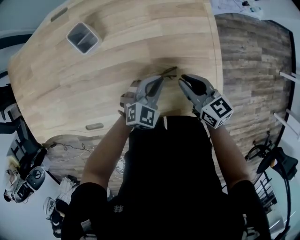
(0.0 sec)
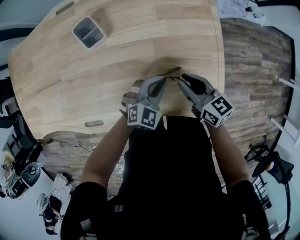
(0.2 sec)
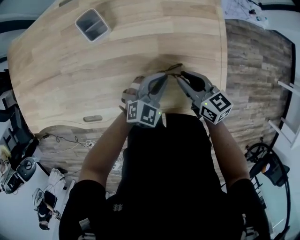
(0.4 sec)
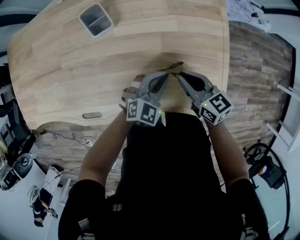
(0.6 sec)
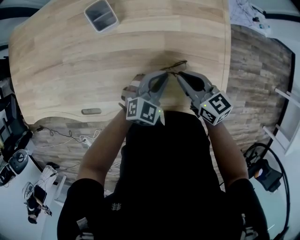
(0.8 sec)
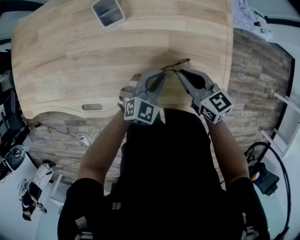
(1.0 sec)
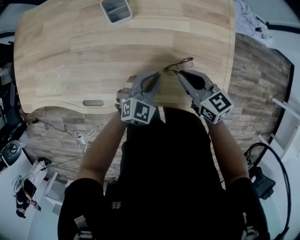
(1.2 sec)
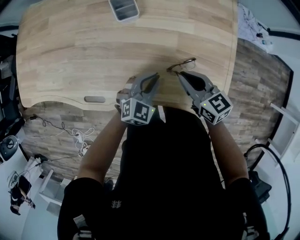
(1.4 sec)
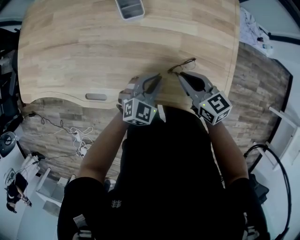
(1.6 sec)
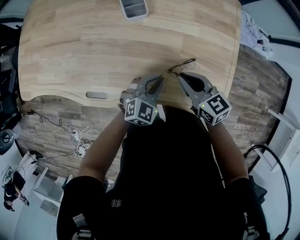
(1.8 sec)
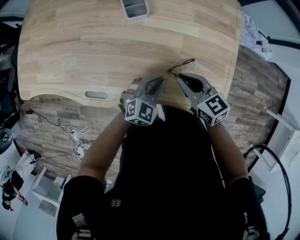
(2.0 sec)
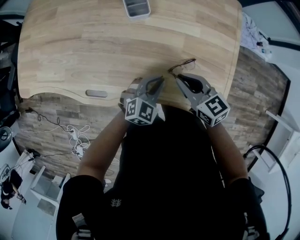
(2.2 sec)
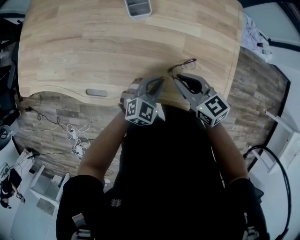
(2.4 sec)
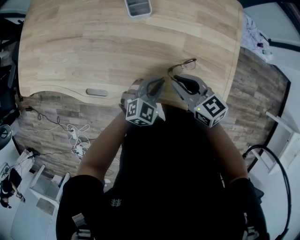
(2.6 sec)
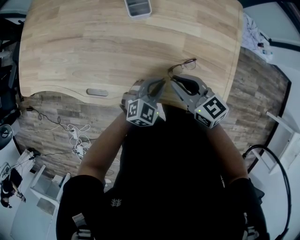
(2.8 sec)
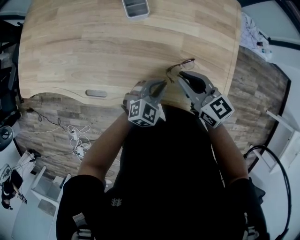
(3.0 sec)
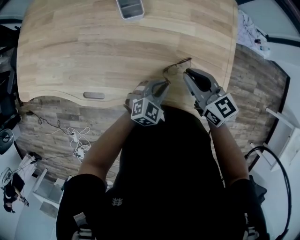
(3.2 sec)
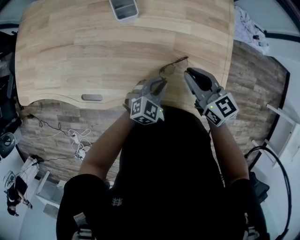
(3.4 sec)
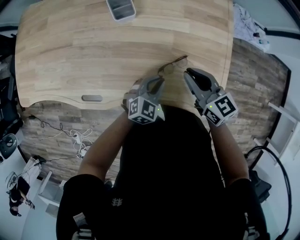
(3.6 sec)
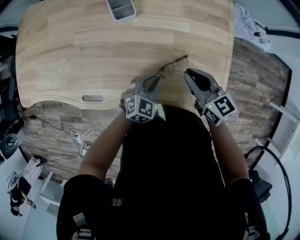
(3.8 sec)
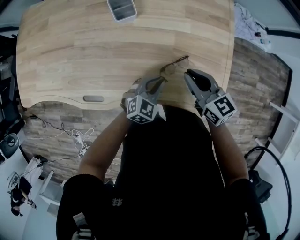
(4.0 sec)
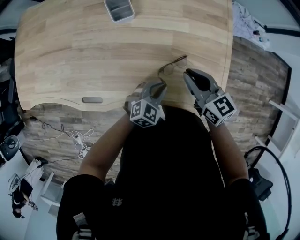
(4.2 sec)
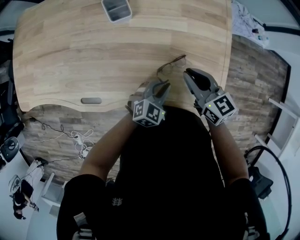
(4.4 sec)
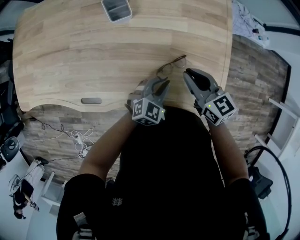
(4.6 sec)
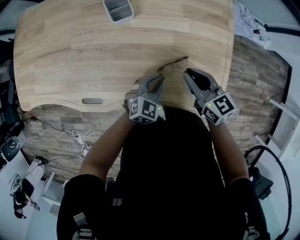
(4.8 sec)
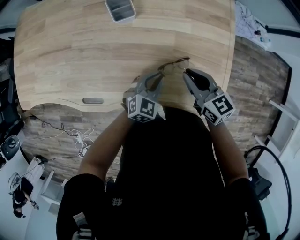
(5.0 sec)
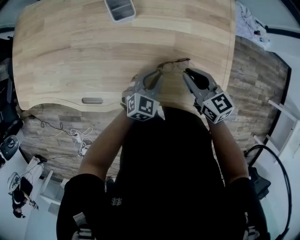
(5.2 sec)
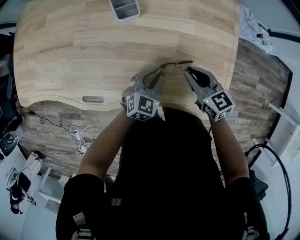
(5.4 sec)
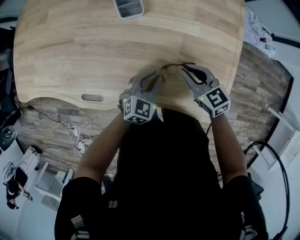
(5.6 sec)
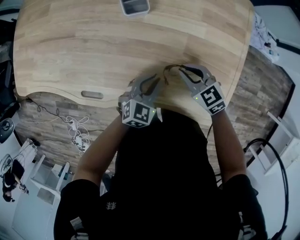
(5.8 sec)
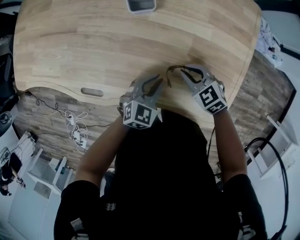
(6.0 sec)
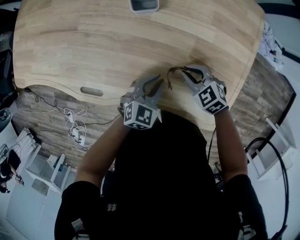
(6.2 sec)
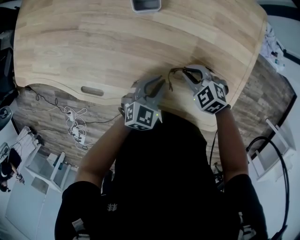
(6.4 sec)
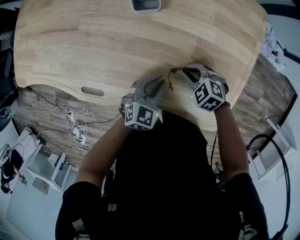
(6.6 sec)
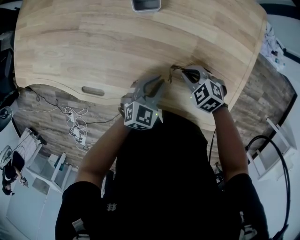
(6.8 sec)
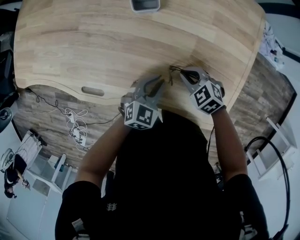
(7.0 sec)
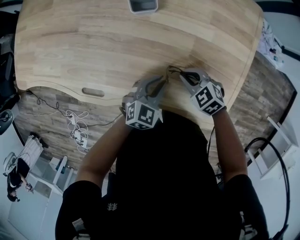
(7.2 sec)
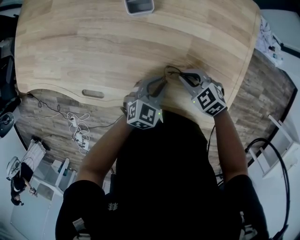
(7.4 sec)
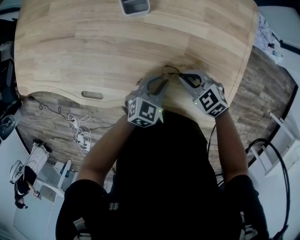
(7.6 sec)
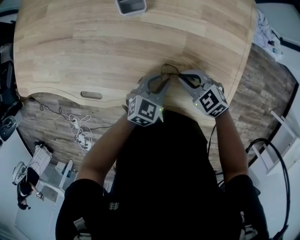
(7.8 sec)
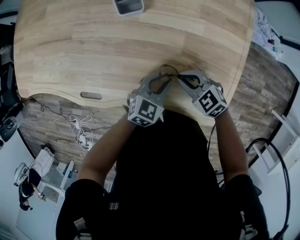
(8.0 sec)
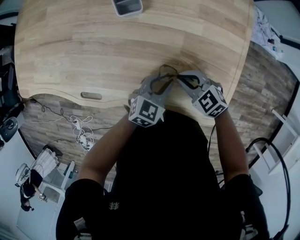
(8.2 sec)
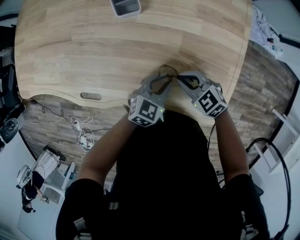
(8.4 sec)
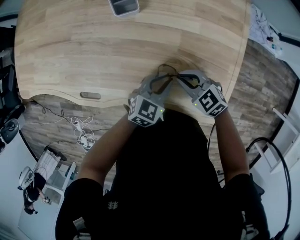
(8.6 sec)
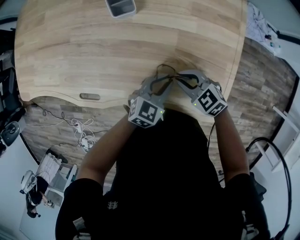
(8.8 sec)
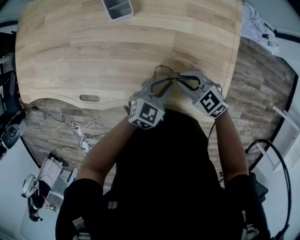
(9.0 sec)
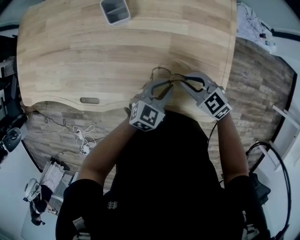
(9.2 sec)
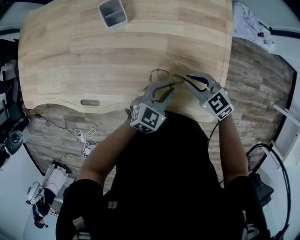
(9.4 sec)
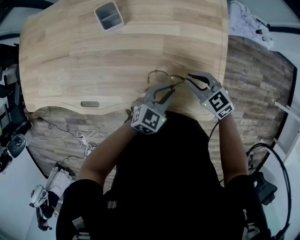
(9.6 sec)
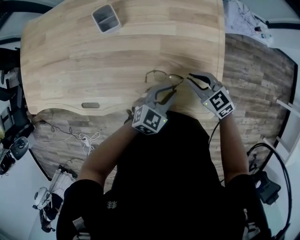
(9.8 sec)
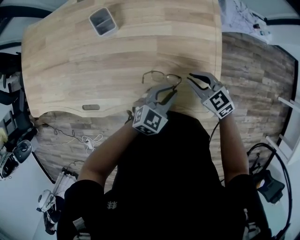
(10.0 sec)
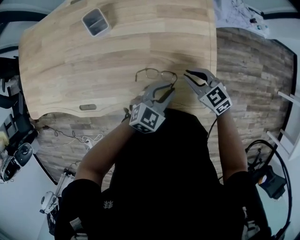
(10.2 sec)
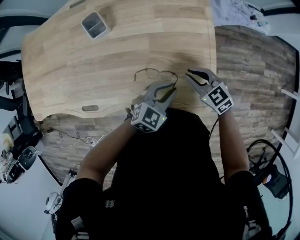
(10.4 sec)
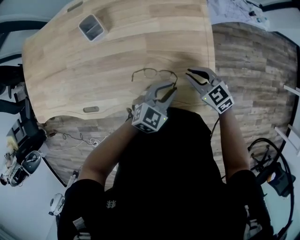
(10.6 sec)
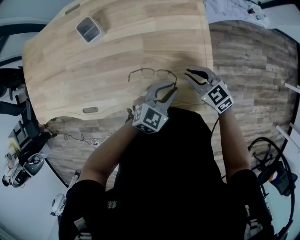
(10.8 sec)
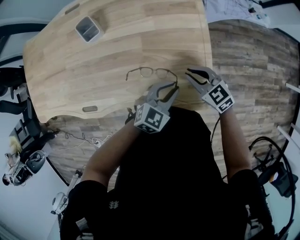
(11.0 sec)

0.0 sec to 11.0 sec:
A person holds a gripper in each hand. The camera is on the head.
0.0 sec to 1.6 sec: Both grippers move to the left, approximately 10 cm.
1.6 sec to 3.2 sec: The left gripper shifts by about 5 cm.
3.2 sec to 4.8 sec: The grippers move only a little.
4.8 sec to 6.2 sec: The left gripper ends up roughly 5 cm from where it was. Meanwhile the right gripper goes approximately 15 cm downward, and turns by some 50 degrees.
6.2 sec to 7.8 sec: There are only small adjustments of the grippers.
7.8 sec to 9.4 sec: The left gripper moves to the right, backward and upward, approximately 10 cm, while the right gripper is displaced to the right and upward by some 10 cm.
9.4 sec to 11.0 sec: Both grippers travel together to the right, about 10 cm.

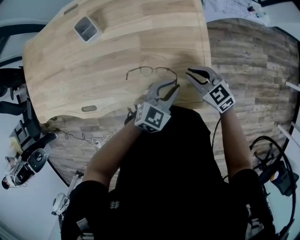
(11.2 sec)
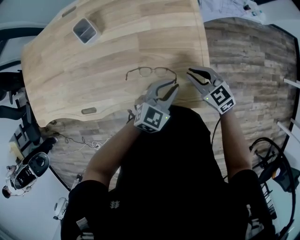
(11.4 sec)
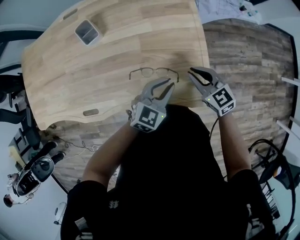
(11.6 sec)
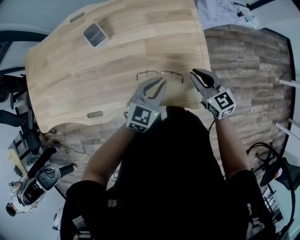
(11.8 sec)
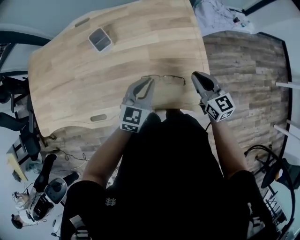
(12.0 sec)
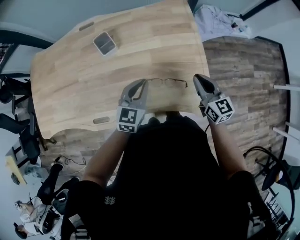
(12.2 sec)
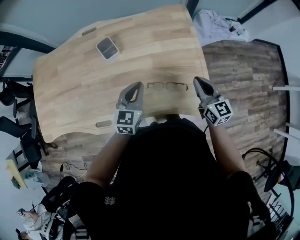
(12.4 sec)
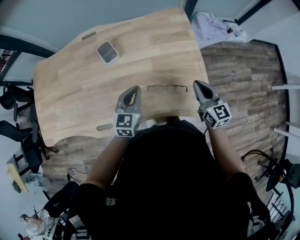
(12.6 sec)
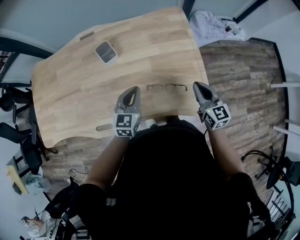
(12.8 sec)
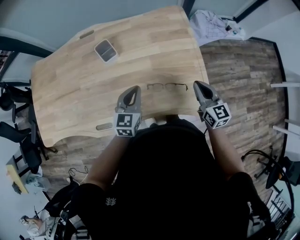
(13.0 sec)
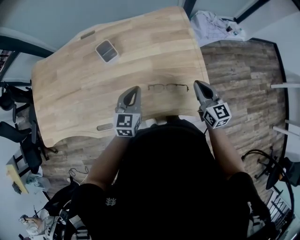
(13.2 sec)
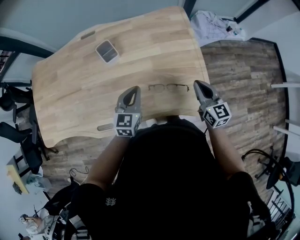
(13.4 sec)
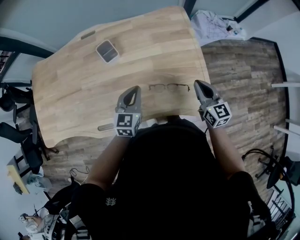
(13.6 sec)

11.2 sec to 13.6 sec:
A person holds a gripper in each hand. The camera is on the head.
11.2 sec to 12.4 sec: The right gripper goes some 15 cm upward, and changes its angle by roughly 40 degrees, while the left gripper travels to the left and upward by some 25 cm, and turns by approximately 30 degrees.
12.4 sec to 13.6 sec: The grippers make only small movements.

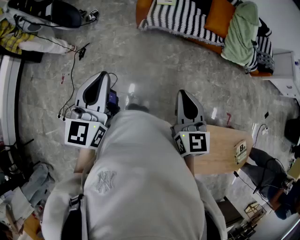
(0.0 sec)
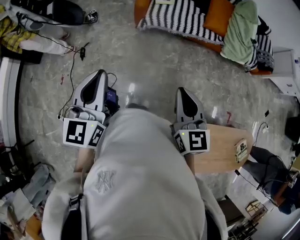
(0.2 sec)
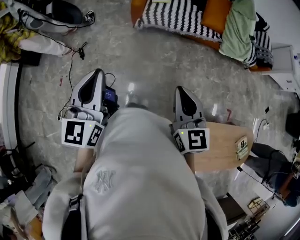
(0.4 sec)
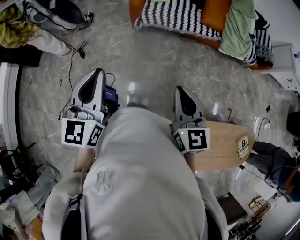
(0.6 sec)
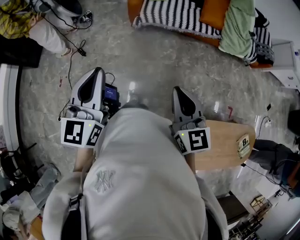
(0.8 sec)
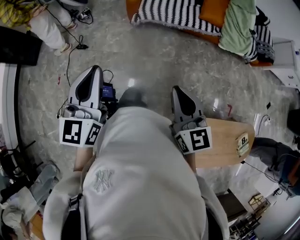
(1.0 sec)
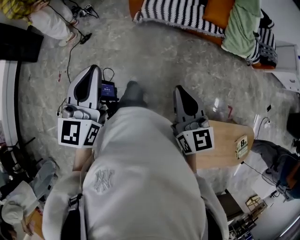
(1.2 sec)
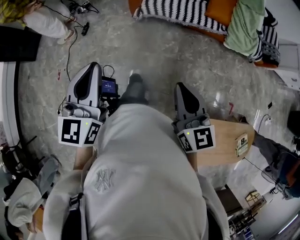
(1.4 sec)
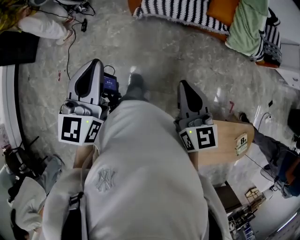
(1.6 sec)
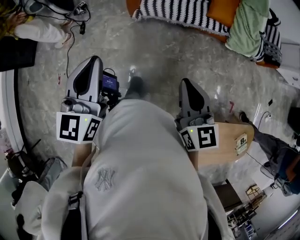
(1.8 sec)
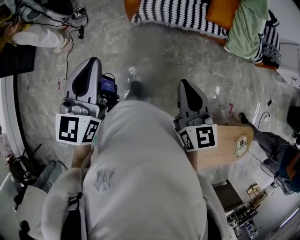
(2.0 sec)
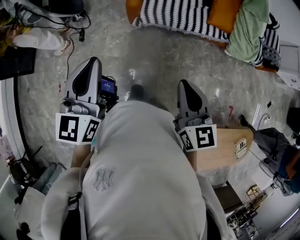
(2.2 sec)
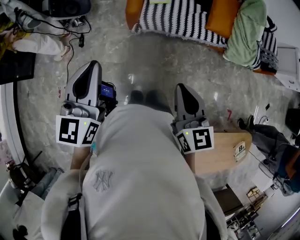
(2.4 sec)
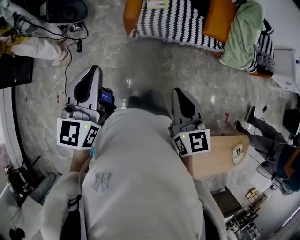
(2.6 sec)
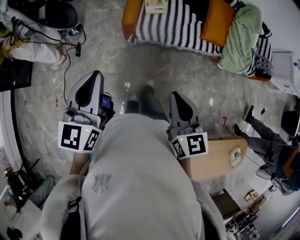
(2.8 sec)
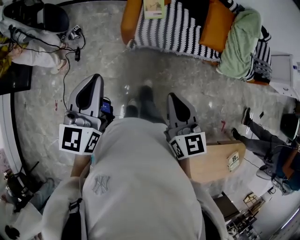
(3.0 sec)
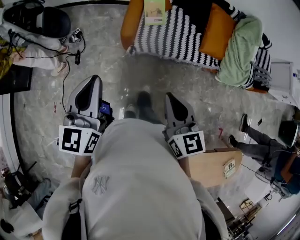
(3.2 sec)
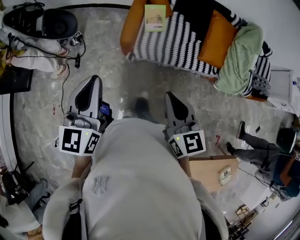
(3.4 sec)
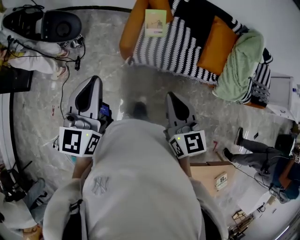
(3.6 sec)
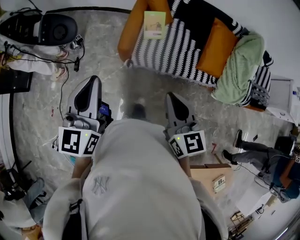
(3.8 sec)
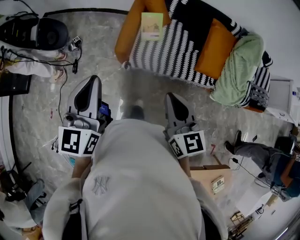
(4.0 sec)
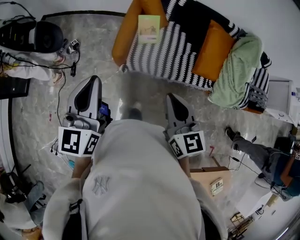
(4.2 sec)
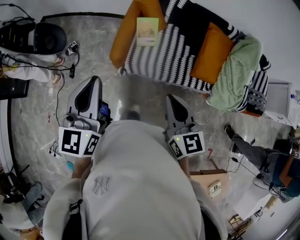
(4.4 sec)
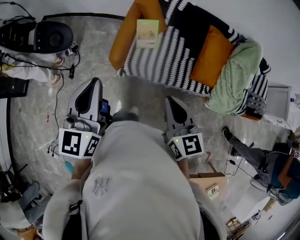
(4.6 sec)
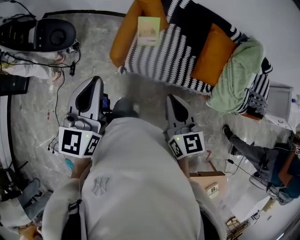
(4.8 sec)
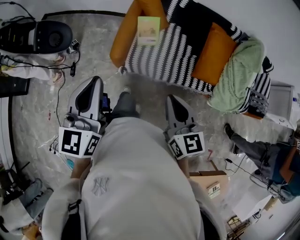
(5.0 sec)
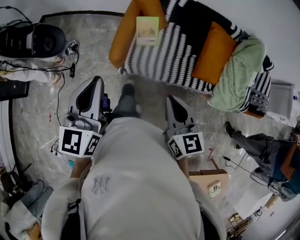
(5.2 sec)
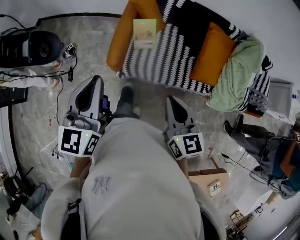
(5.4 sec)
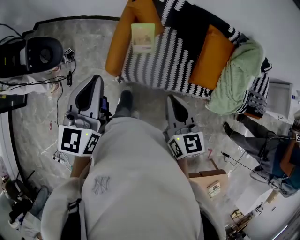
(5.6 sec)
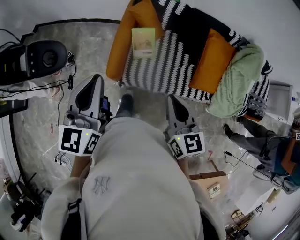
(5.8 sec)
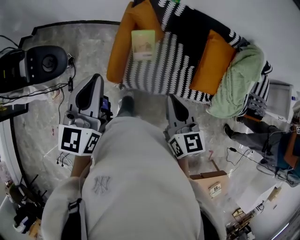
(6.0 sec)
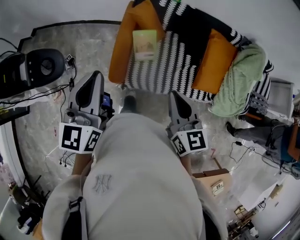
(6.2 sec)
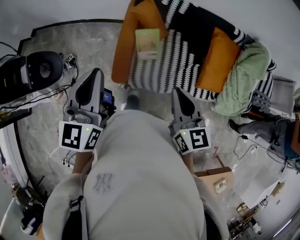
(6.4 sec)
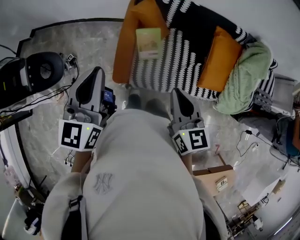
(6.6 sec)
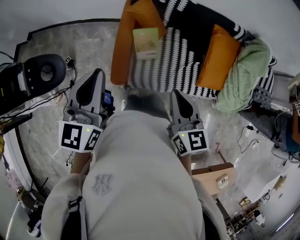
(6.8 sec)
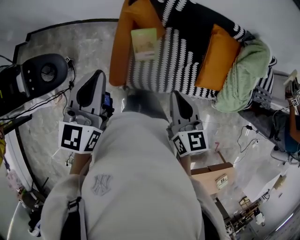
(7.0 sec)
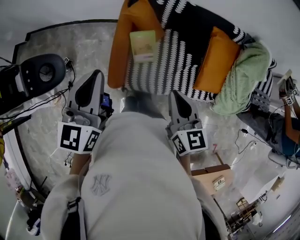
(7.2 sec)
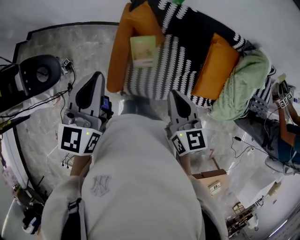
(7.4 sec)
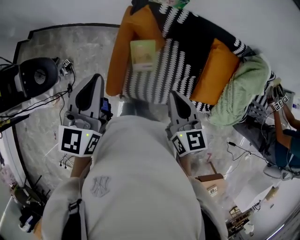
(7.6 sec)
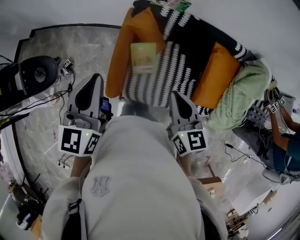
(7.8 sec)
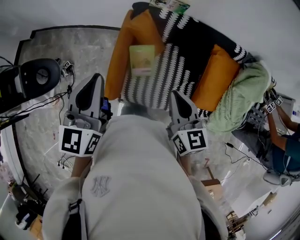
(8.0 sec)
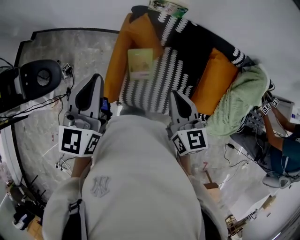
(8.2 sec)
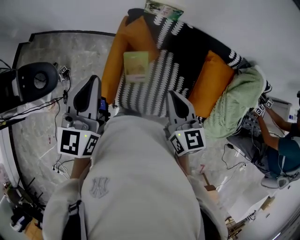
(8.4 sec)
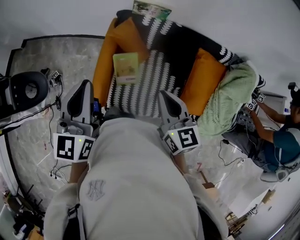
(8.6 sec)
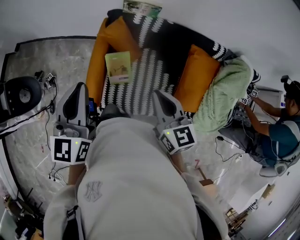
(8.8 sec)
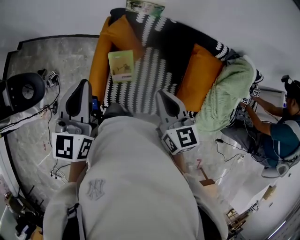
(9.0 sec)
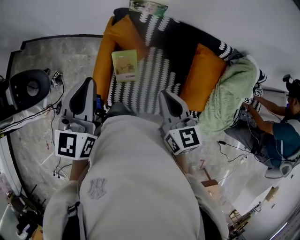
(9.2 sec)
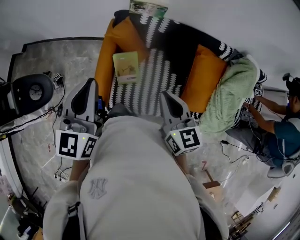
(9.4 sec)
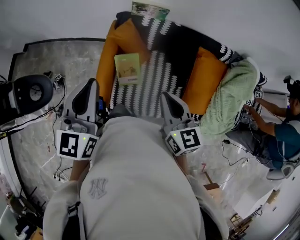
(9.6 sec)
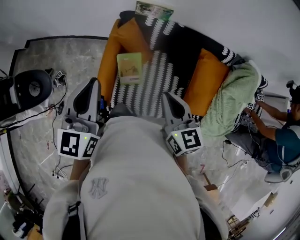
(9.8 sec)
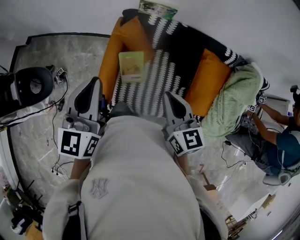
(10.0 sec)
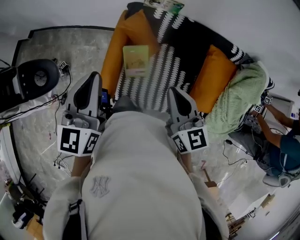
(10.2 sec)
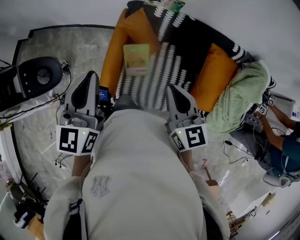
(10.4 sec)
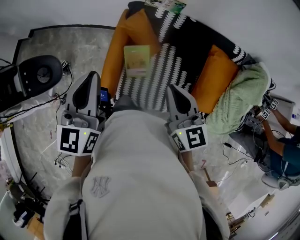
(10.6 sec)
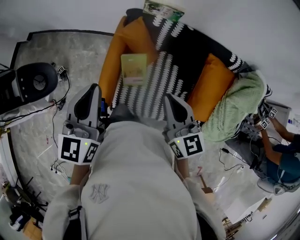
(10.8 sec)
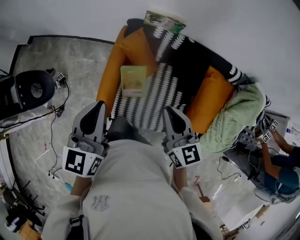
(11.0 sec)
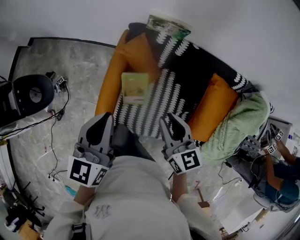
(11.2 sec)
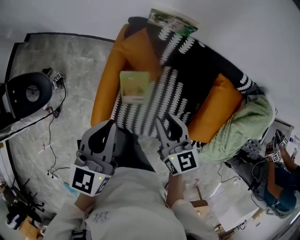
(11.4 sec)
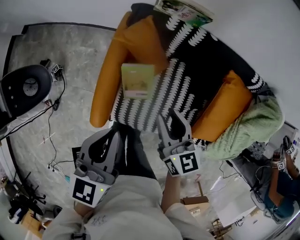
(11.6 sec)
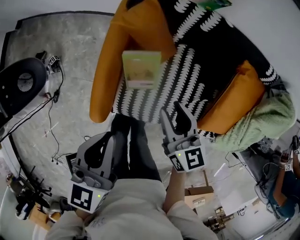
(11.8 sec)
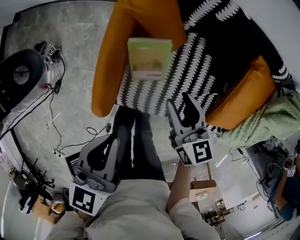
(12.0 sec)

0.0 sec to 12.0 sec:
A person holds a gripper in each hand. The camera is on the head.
0.0 sec to 1.6 sec: Both grippers travel together forward, about 10 cm.
1.6 sec to 3.0 sec: The grippers both shift forward by approximately 20 cm.
3.0 sec to 4.4 sec: The two grippers go about 20 cm forward and to the right.
4.4 sec to 6.0 sec: The grippers both shift forward by approximately 20 cm.
6.0 sec to 7.6 sec: The grippers both shift forward by approximately 15 cm.
7.6 sec to 9.0 sec: The two grippers go approximately 5 cm to the right.
9.0 sec to 10.4 sec: The grippers make only small movements.
10.4 sec to 12.0 sec: The grippers both shift downward by roughly 25 cm. The left gripper swivels approximately 30 degrees; the right gripper opens its fingers.
